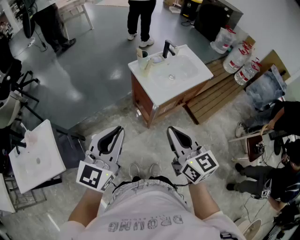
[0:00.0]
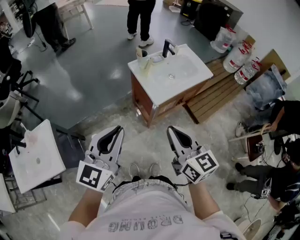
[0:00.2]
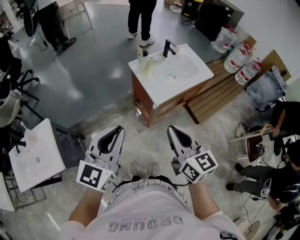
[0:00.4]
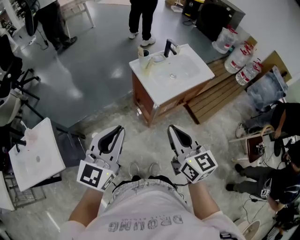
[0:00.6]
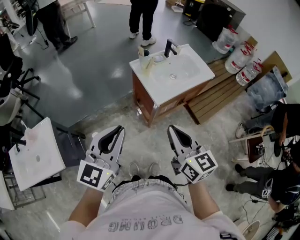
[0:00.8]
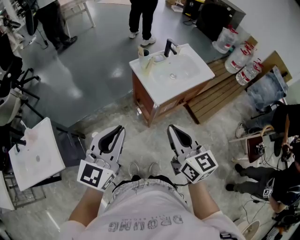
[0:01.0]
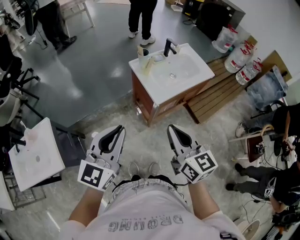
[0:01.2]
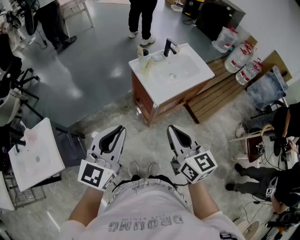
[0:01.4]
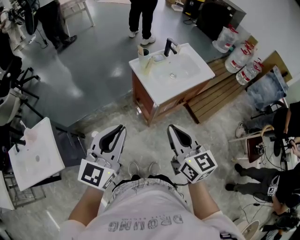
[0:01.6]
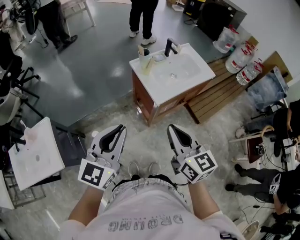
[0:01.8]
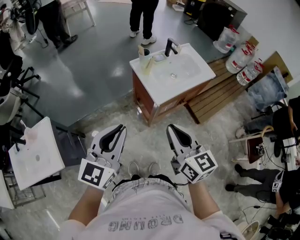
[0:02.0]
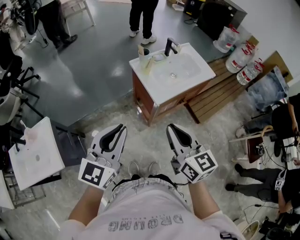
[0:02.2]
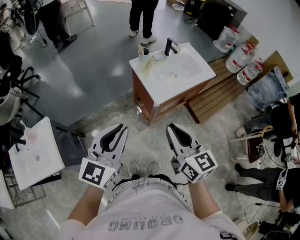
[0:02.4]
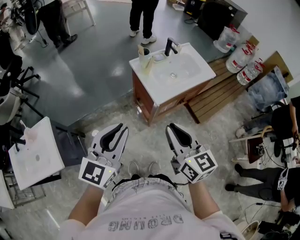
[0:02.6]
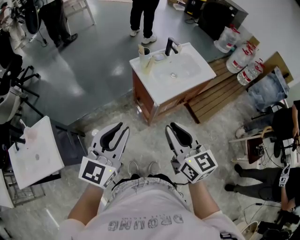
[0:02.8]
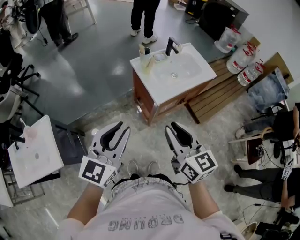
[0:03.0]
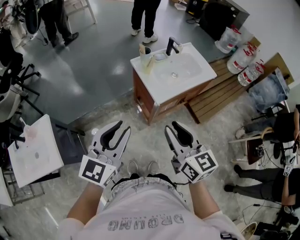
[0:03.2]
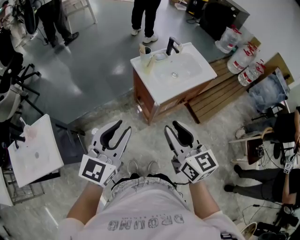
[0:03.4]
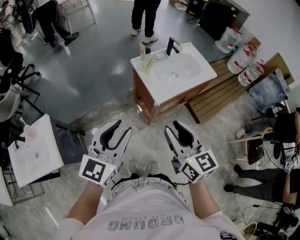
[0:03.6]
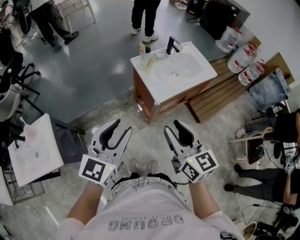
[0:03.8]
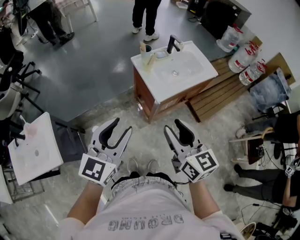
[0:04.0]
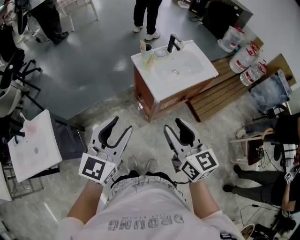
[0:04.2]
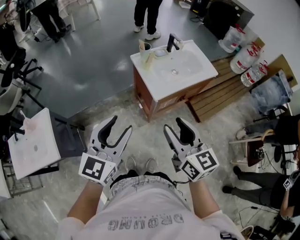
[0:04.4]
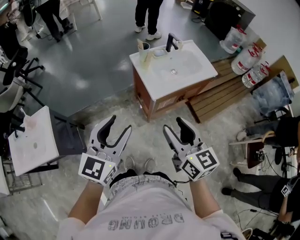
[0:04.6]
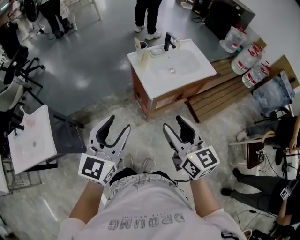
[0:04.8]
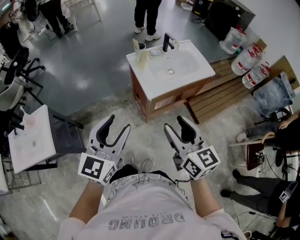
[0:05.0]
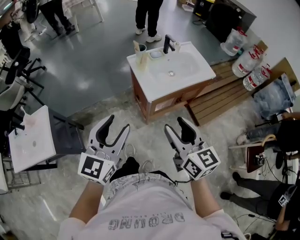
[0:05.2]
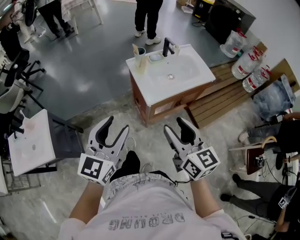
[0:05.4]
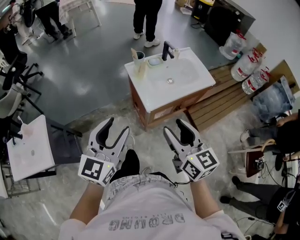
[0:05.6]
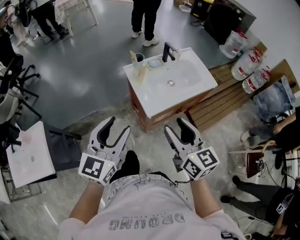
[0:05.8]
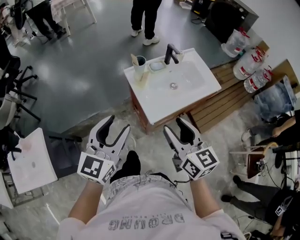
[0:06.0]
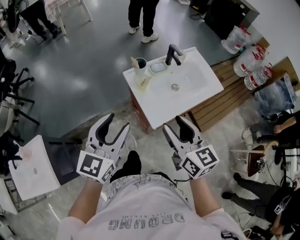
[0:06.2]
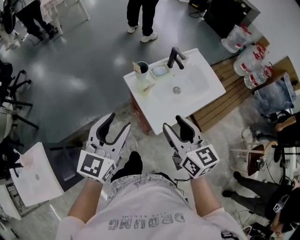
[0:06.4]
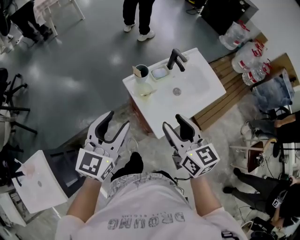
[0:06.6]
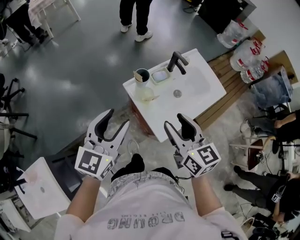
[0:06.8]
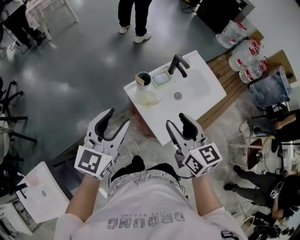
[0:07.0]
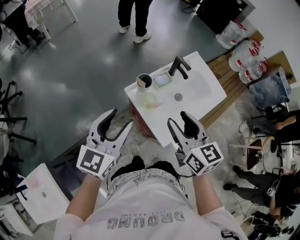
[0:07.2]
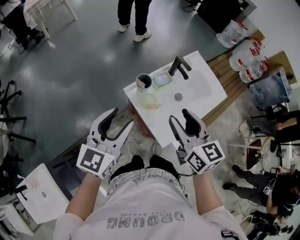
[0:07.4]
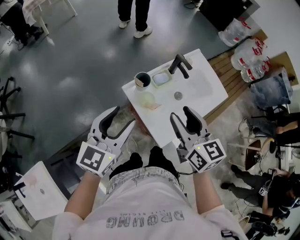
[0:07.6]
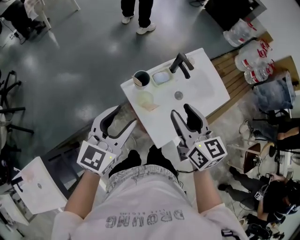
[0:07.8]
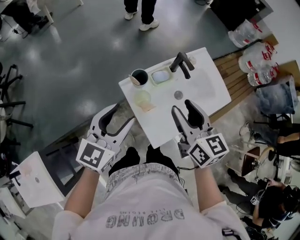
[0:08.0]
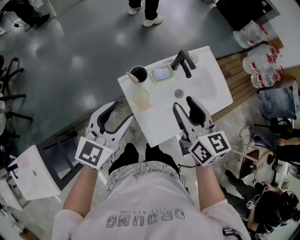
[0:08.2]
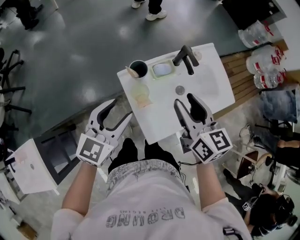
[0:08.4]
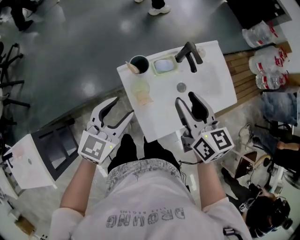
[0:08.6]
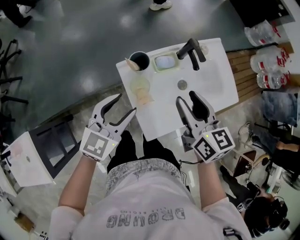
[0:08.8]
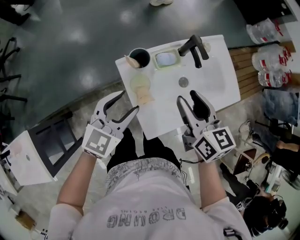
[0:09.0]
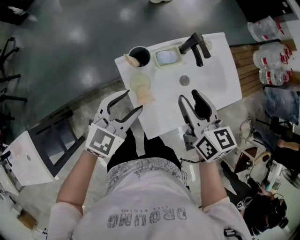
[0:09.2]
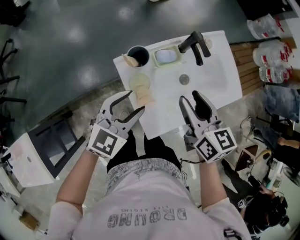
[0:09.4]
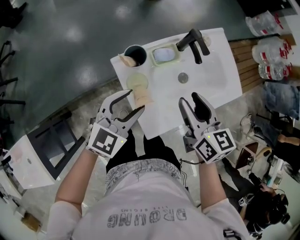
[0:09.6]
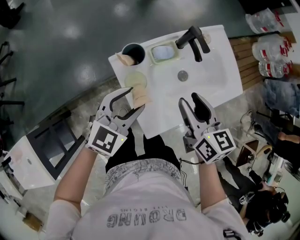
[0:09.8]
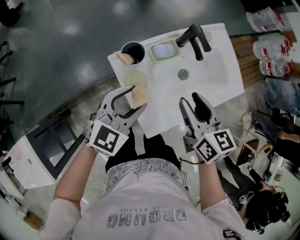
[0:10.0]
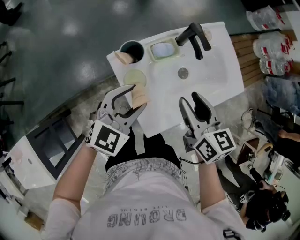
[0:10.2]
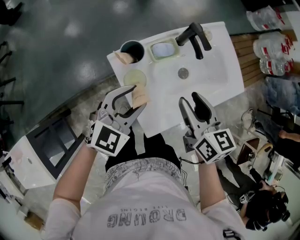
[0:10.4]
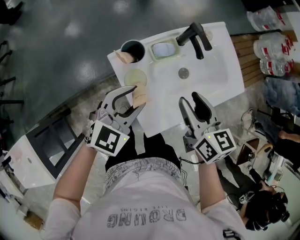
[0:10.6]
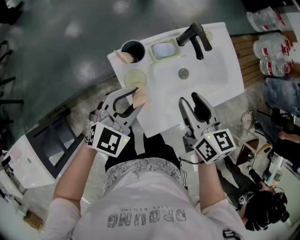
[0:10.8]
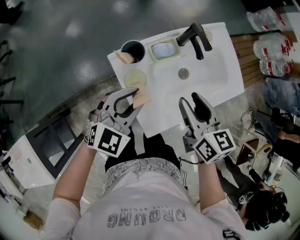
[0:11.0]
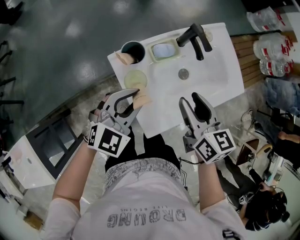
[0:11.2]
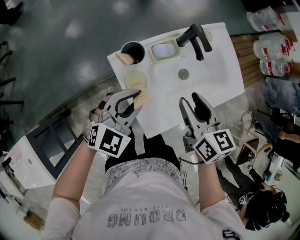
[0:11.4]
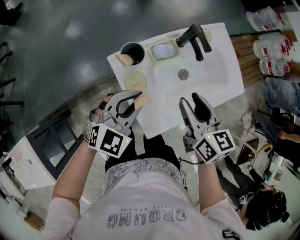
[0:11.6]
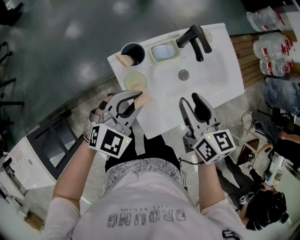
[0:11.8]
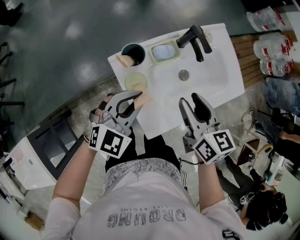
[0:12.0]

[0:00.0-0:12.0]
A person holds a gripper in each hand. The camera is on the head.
0:00.0 to 0:01.6: The two grippers keep their place.
0:01.6 to 0:03.0: The right gripper opens up.
0:03.0 to 0:04.4: The right gripper opens its fingers. Meanwhile the left gripper opens its fingers.
0:04.4 to 0:06.0: The grippers both shift forward by some 15 cm.
0:06.0 to 0:07.6: Both grippers move forward, about 20 cm.
0:07.6 to 0:09.0: The right gripper is displaced downward, forward and to the right by about 10 cm, while the left gripper travels downward and to the right by some 15 cm.
0:09.0 to 0:10.4: The right gripper changes place by some 5 cm. Meanwhile the left gripper moves roughly 5 cm.
0:10.4 to 0:12.0: The left gripper closes up.

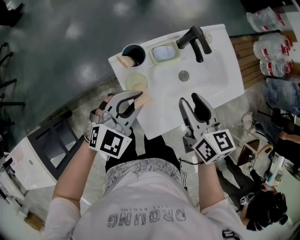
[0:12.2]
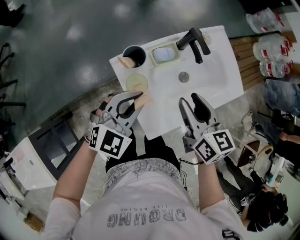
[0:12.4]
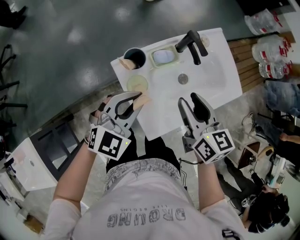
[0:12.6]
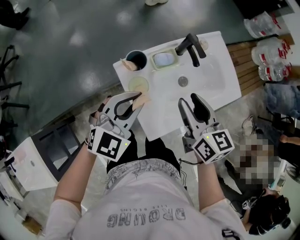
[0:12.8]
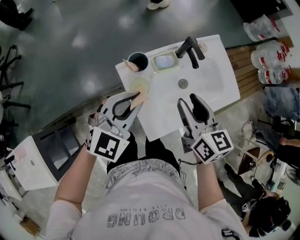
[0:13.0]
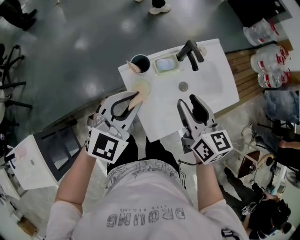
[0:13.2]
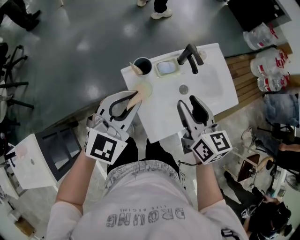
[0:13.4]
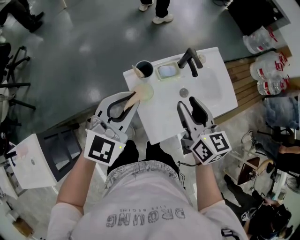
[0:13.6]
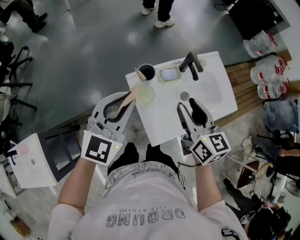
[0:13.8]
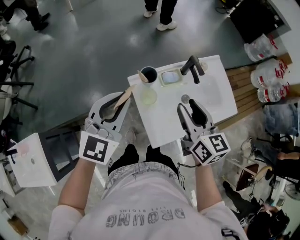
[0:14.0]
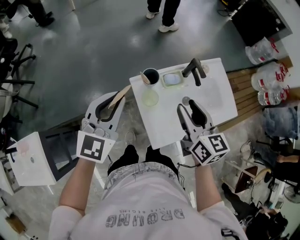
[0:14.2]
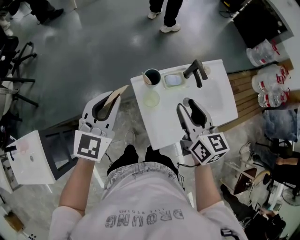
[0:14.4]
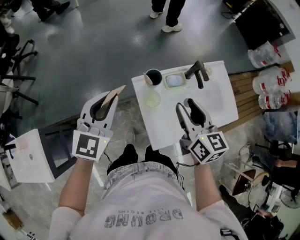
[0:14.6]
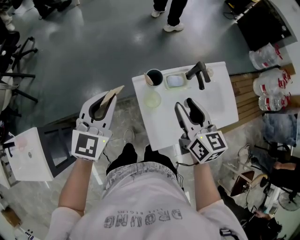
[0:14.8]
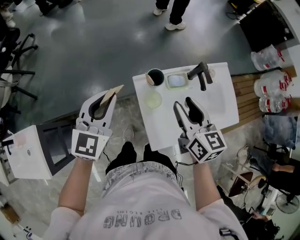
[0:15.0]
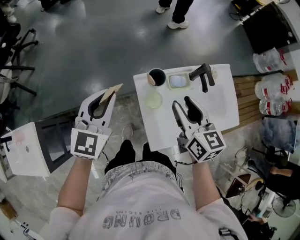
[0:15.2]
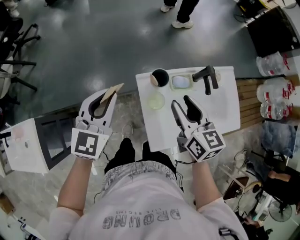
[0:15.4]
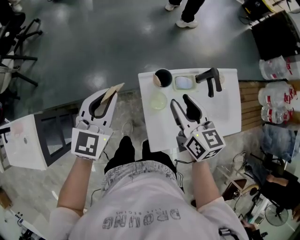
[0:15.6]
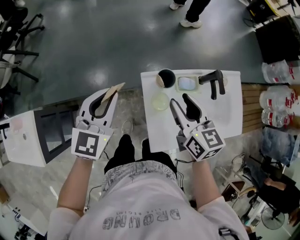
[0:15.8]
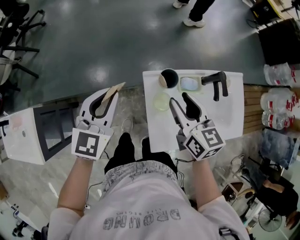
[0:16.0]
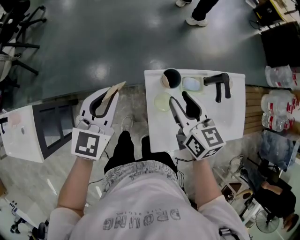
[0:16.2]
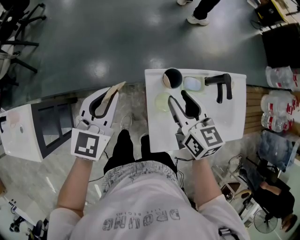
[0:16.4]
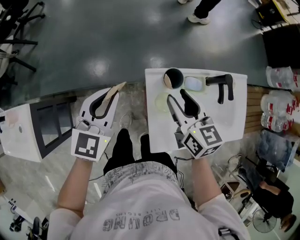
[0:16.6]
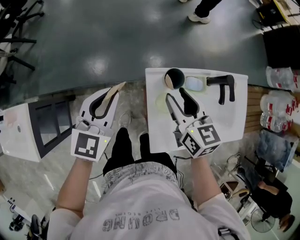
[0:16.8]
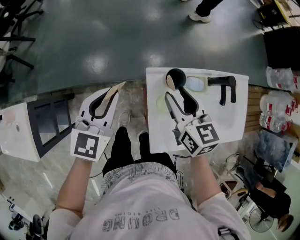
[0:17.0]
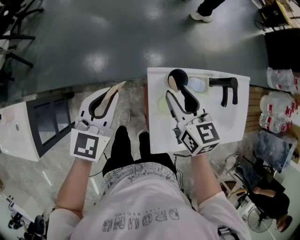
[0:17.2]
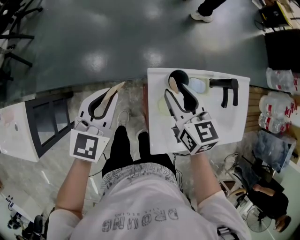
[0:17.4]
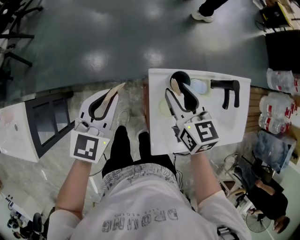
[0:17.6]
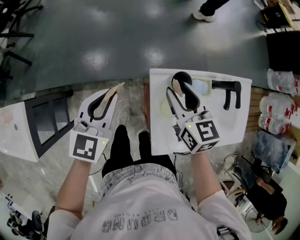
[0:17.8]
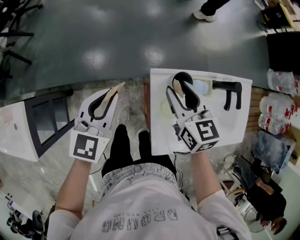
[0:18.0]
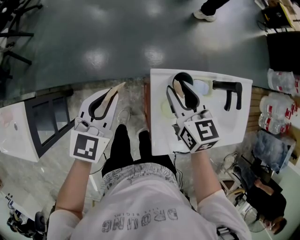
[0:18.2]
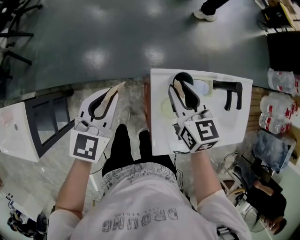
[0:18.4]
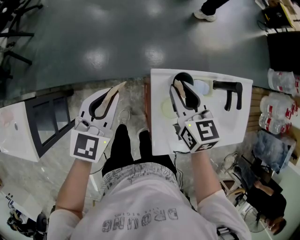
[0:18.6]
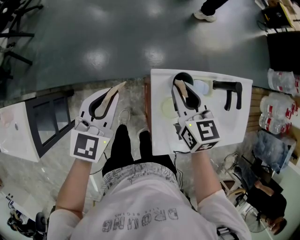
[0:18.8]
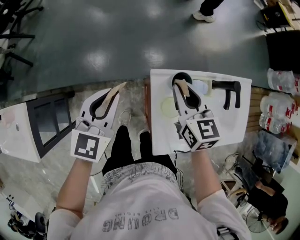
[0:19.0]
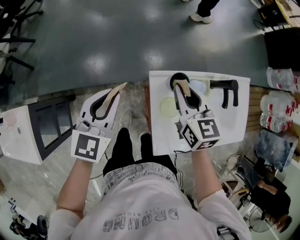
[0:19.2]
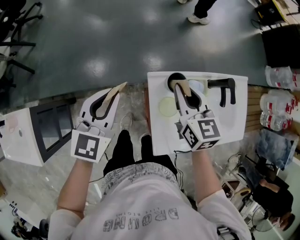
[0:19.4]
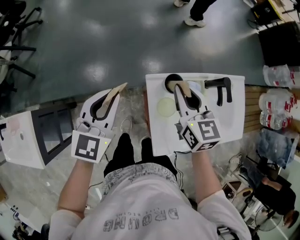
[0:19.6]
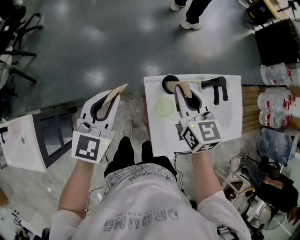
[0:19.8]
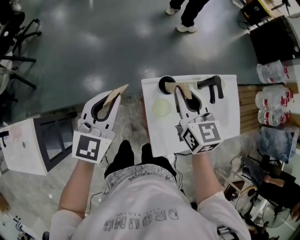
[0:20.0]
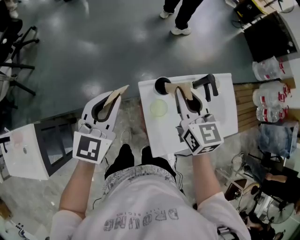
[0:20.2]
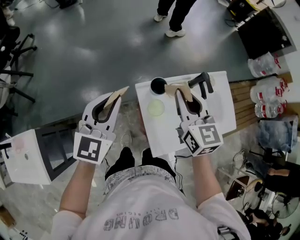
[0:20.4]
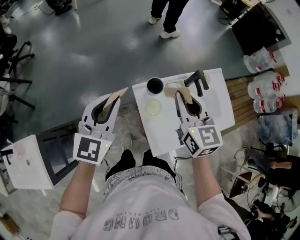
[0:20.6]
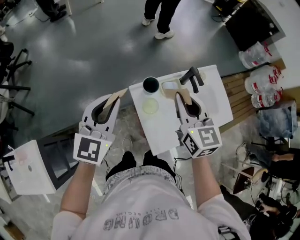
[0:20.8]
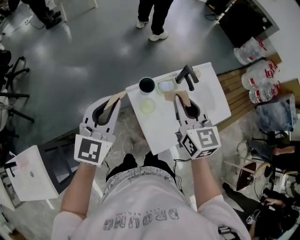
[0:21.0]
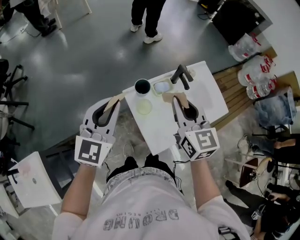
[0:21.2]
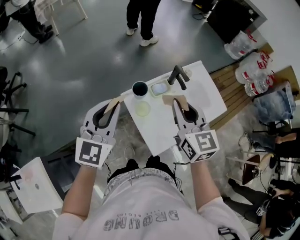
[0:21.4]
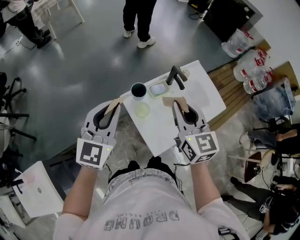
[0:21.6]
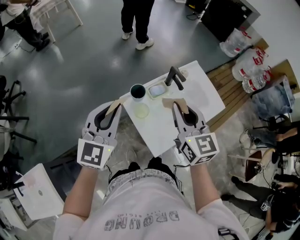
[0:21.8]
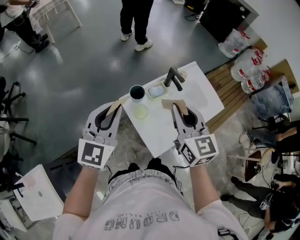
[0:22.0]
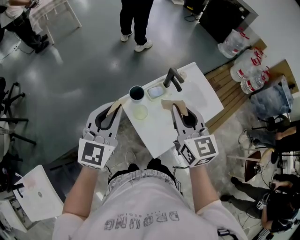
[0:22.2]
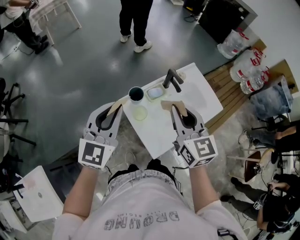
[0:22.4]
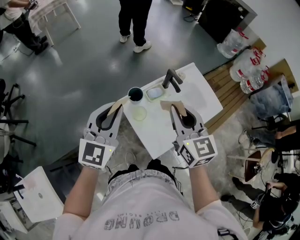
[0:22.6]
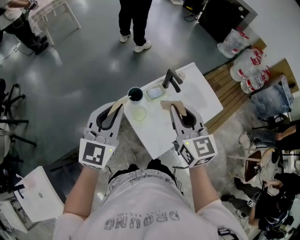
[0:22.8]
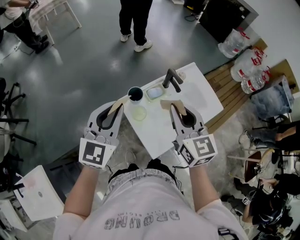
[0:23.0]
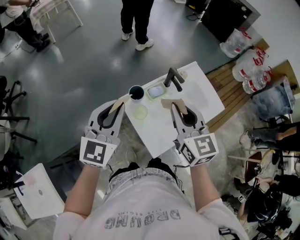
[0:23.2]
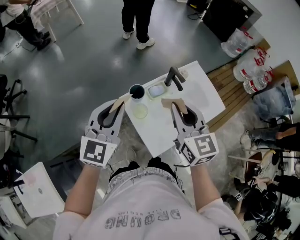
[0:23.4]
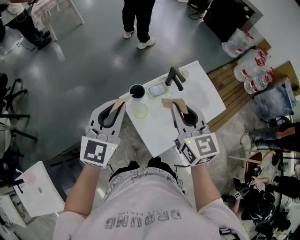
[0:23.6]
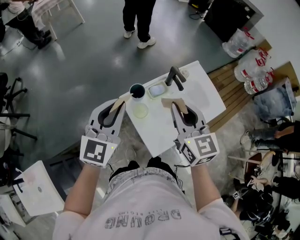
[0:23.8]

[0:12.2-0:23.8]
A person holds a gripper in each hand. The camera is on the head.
0:12.2 to 0:13.6: The left gripper shifts roughly 15 cm upward; the right gripper moves upward, some 10 cm.
0:13.6 to 0:15.0: The right gripper moves approximately 5 cm; the left gripper shifts some 10 cm to the left, and swivels roughly 20 degrees.
0:15.0 to 0:16.6: The left gripper travels downward by roughly 5 cm, while the right gripper goes roughly 10 cm to the left, downward and forward.
0:16.6 to 0:18.0: The right gripper ends up some 5 cm from where it was; the left gripper ends up about 5 cm from where it was.
0:18.0 to 0:19.4: The right gripper closes its fingers.
0:19.4 to 0:21.0: The left gripper goes roughly 15 cm upward and to the right, and turns by roughly 20 degrees, while the right gripper heads upward, backward and to the right, covering about 15 cm, and swivels about 20 degrees.
0:21.0 to 0:22.4: The right gripper shifts by roughly 5 cm.
0:22.4 to 0:23.8: There are only small adjustments of the grippers.
